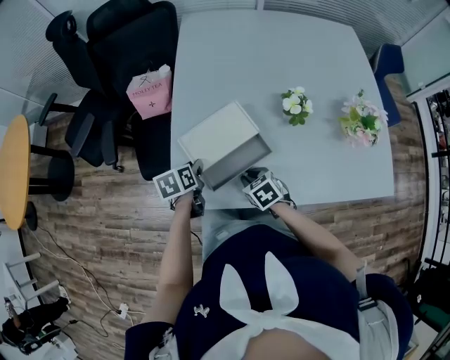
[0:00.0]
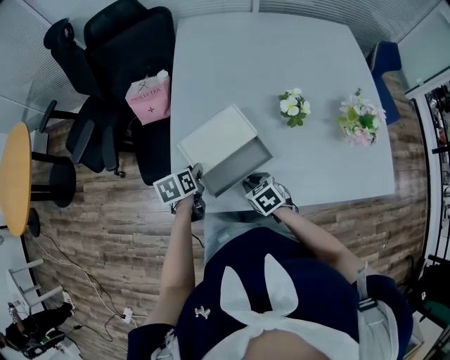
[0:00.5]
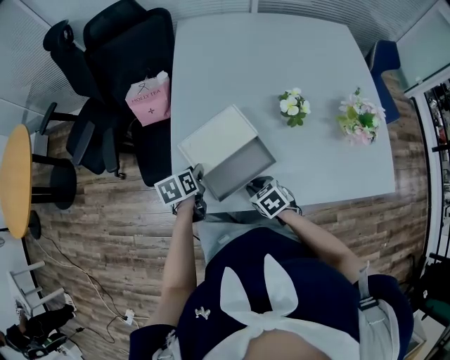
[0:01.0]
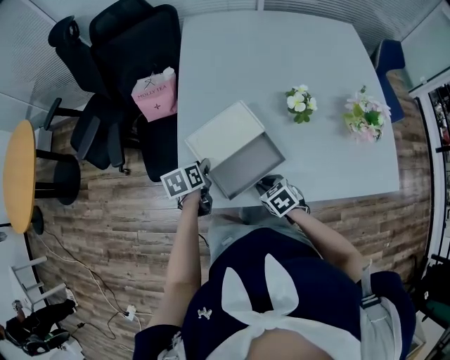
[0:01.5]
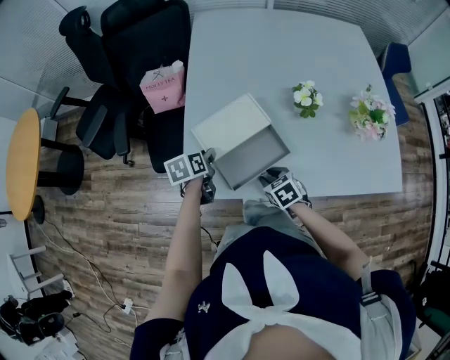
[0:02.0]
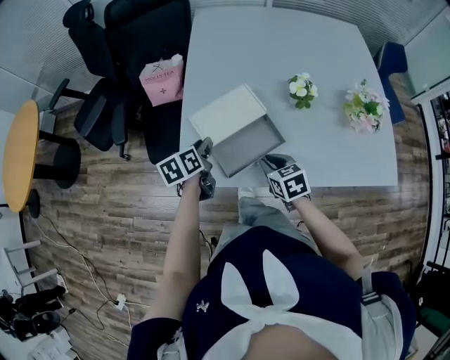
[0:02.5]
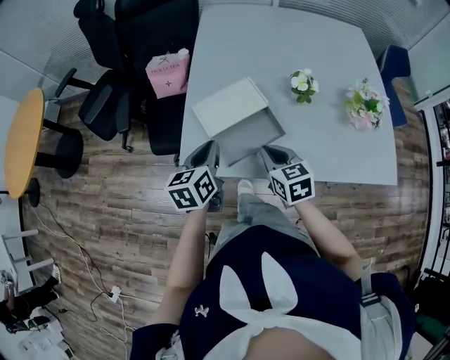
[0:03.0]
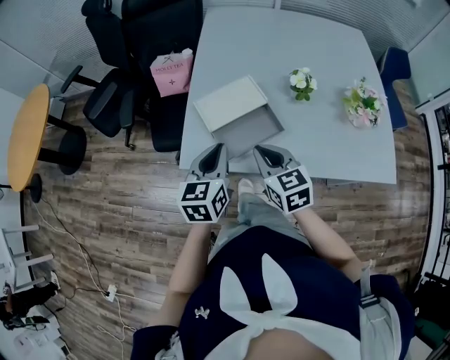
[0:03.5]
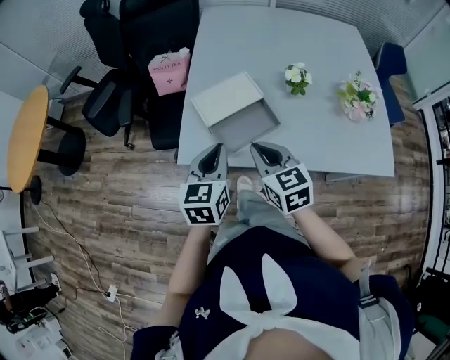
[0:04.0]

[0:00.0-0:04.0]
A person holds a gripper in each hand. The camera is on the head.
0.0 to 2.0 s: The grippers stay close to where they were, moving slightly.
2.0 to 4.0 s: The right gripper is displaced upward by roughly 20 cm, angles its fingers upward, by approximately 30 degrees, and closes; the left gripper goes some 25 cm upward and backward, swivels approximately 40 degrees, and closes up.

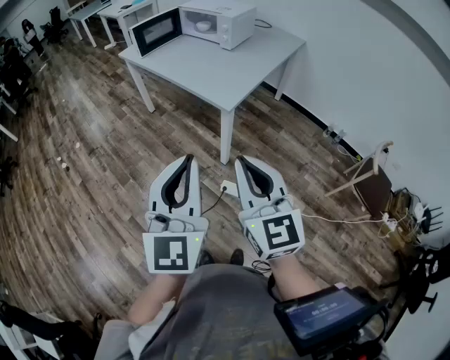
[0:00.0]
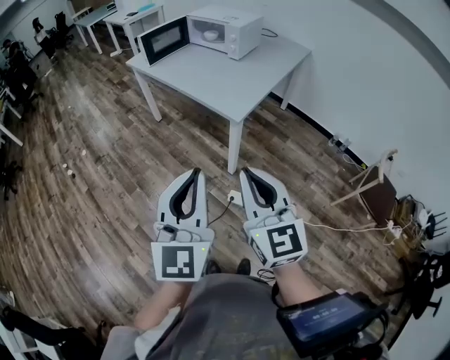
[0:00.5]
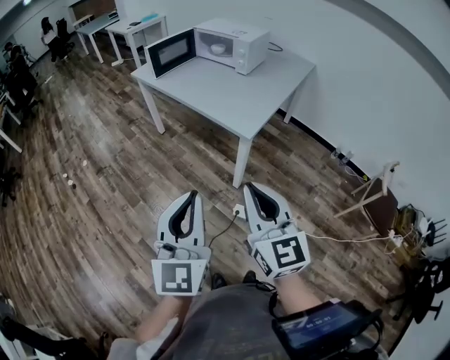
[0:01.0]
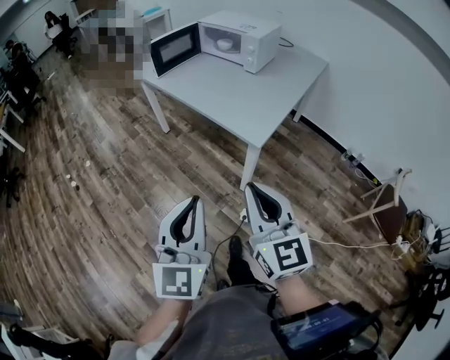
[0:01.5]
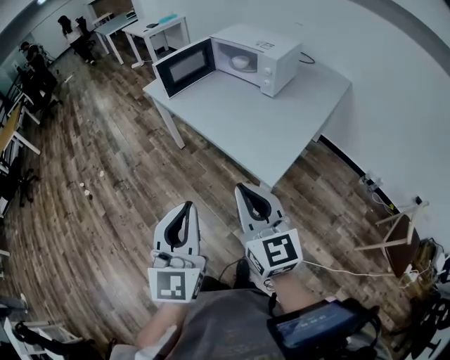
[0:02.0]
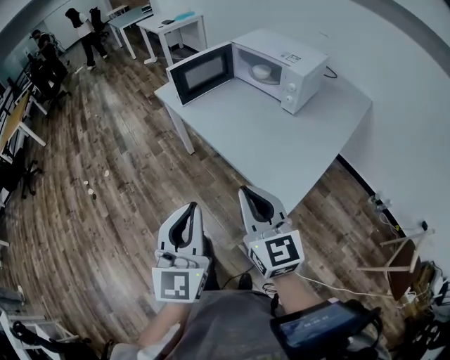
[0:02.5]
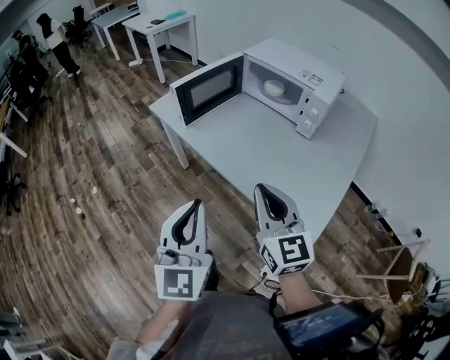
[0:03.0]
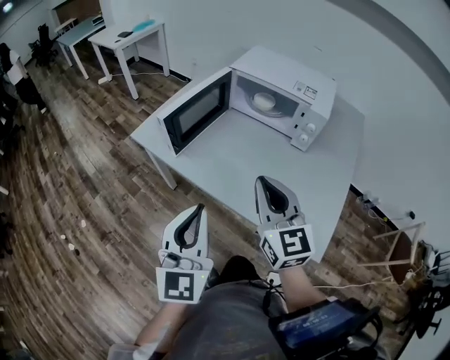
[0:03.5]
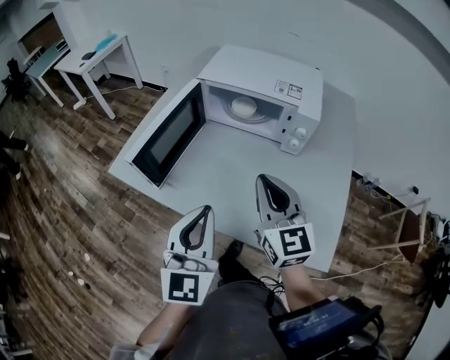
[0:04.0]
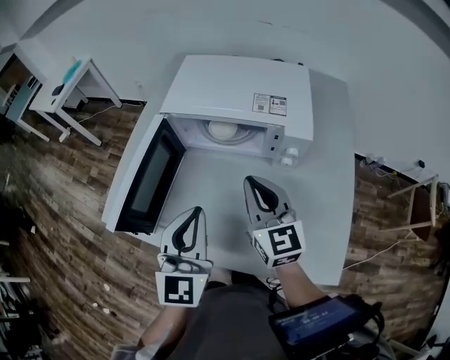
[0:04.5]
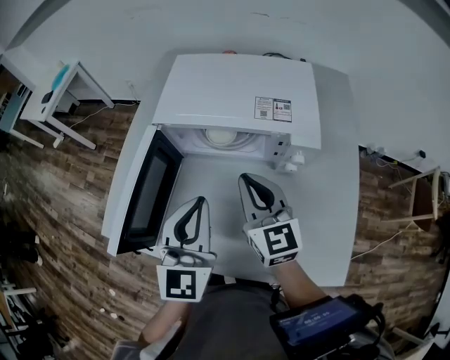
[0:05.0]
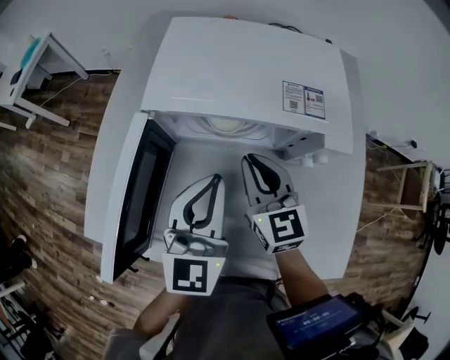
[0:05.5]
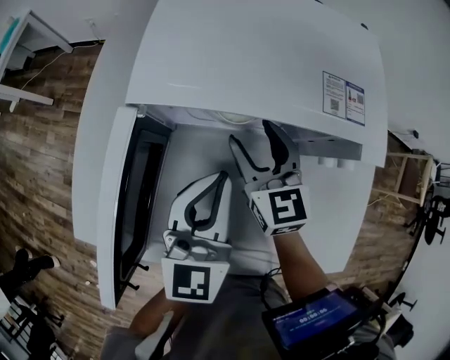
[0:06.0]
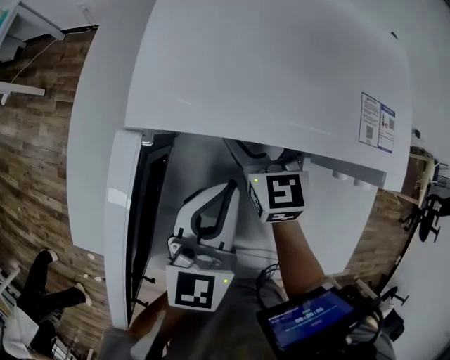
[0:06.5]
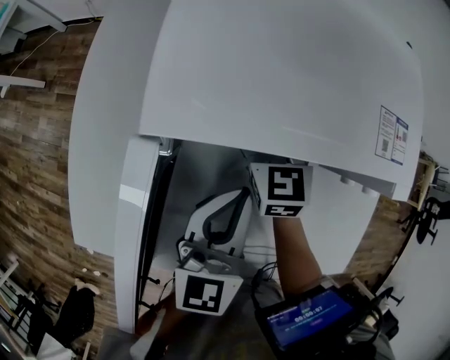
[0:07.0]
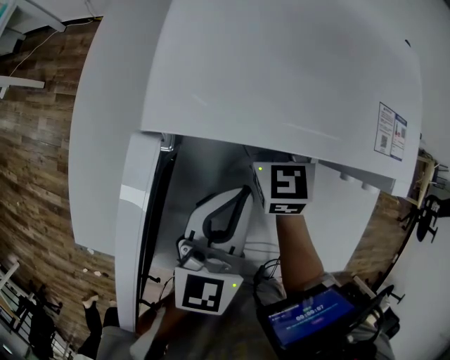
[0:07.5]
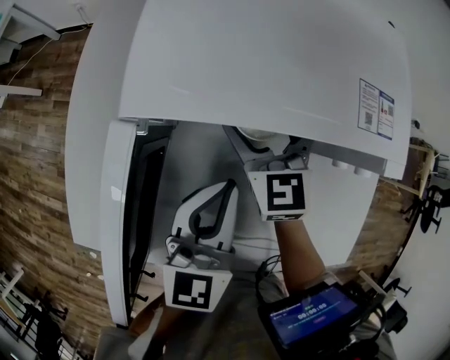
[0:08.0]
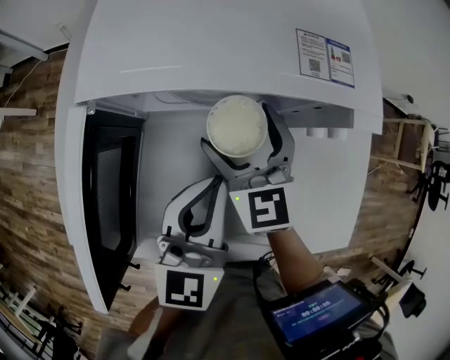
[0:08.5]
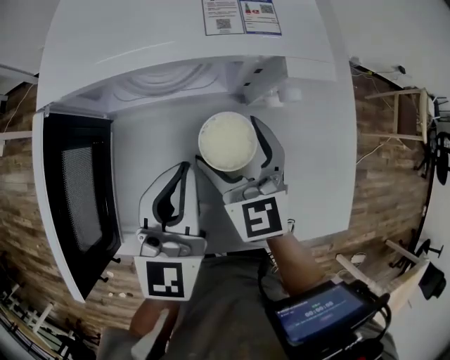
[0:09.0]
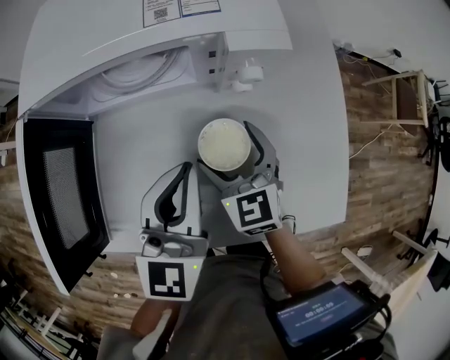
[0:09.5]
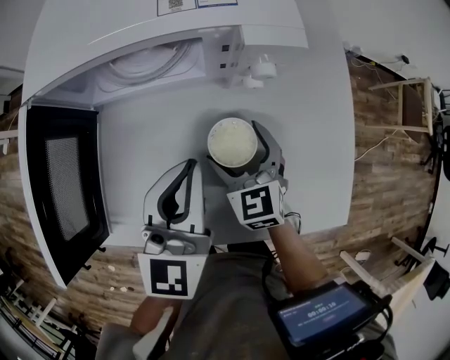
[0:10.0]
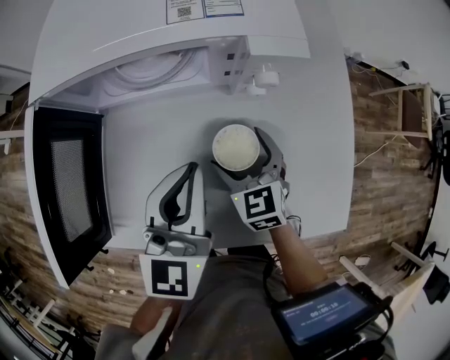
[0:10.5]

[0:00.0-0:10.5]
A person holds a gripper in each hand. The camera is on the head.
0.0 to 2.0 s: The grippers both shift forward by about 25 cm.
2.0 to 4.0 s: The two grippers travel together, some 40 cm. The right gripper changes its angle by some 30 degrees. Meanwhile the left gripper swivels about 30 degrees.
4.0 to 6.5 s: The left gripper travels forward by about 30 cm, and rotates some 30 degrees; the right gripper heads forward and downward, covering about 35 cm, turns by about 30 degrees, and opens up.
6.5 to 8.5 s: The right gripper shifts approximately 5 cm backward. Meanwhile the left gripper moves some 5 cm.
8.5 to 10.5 s: The left gripper moves to the right, about 10 cm; the right gripper travels to the right, downward and backward by roughly 20 cm.

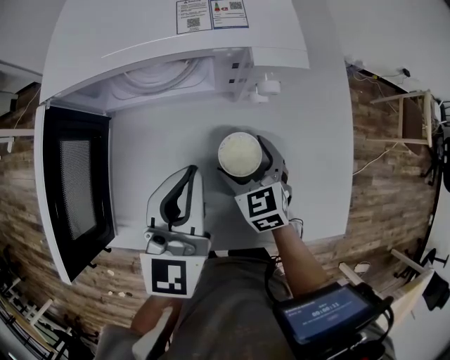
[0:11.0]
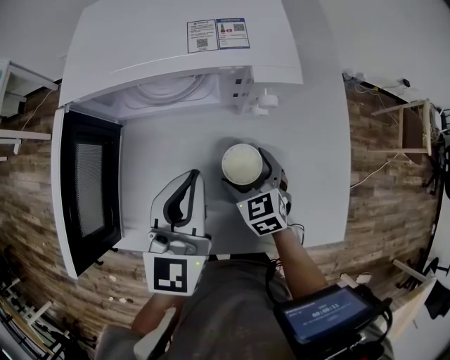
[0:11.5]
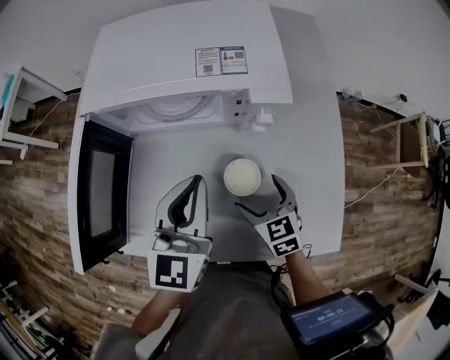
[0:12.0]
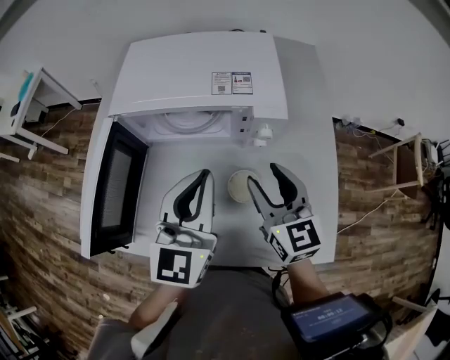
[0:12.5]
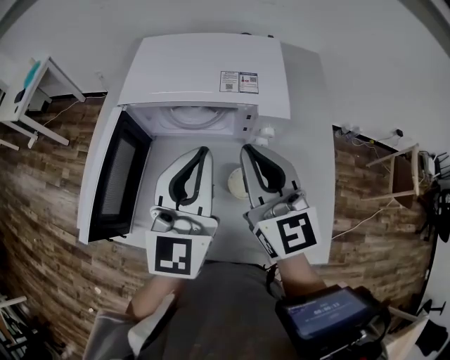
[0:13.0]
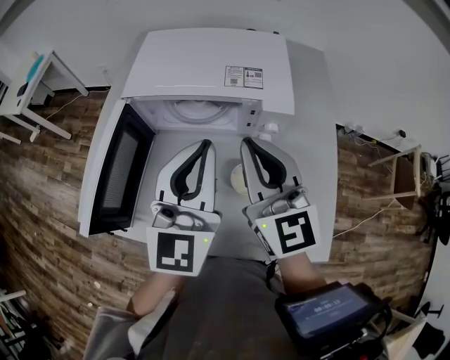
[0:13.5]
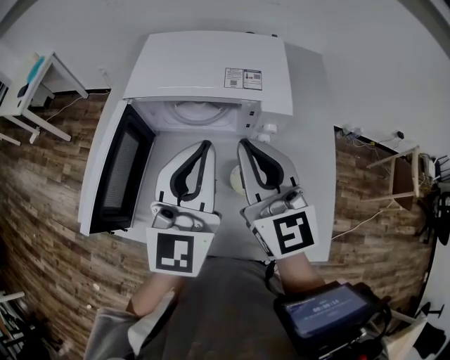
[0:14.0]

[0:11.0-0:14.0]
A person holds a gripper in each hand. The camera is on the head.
11.0 to 12.5 s: The right gripper heads upward, covering about 20 cm, swivels about 30 degrees, and closes its fingers; the left gripper is displaced upward by some 10 cm.
12.5 to 14.0 s: The right gripper is displaced upward and to the left by approximately 15 cm, and closes; the left gripper moves upward, some 5 cm.

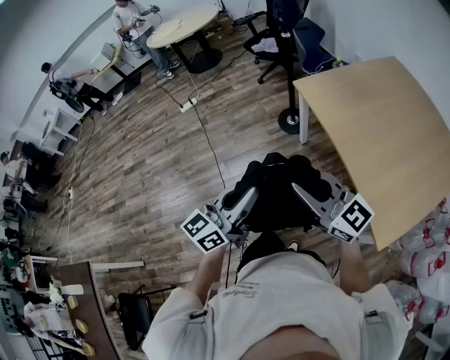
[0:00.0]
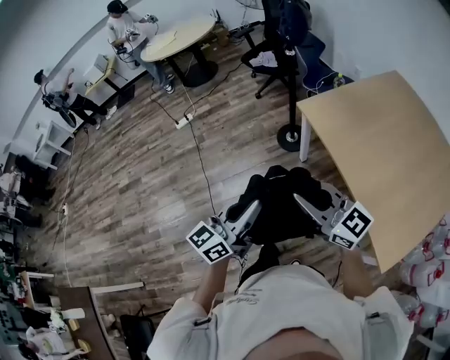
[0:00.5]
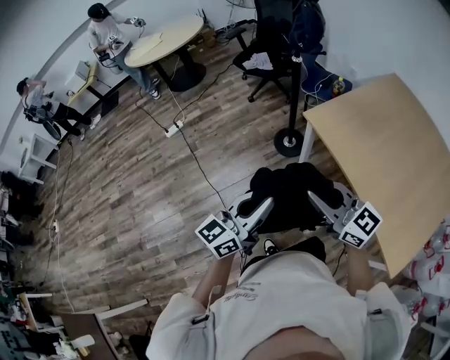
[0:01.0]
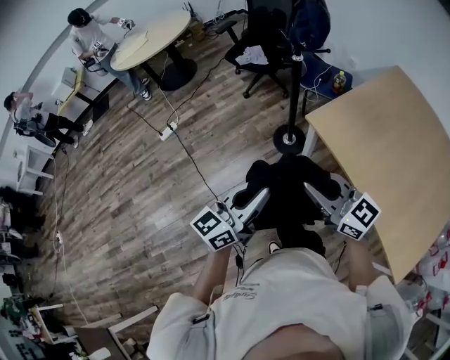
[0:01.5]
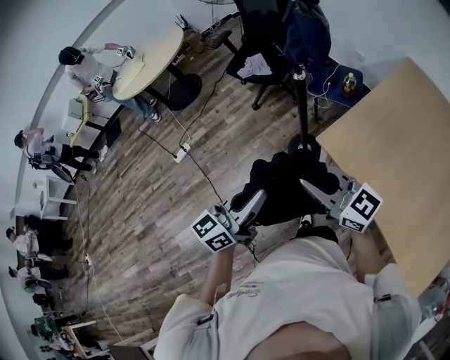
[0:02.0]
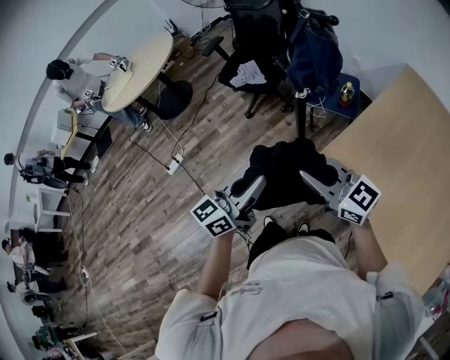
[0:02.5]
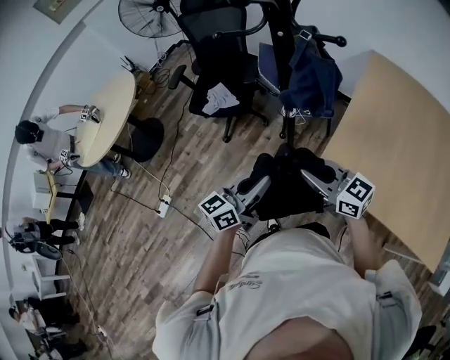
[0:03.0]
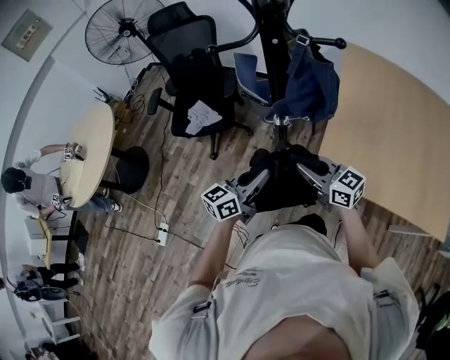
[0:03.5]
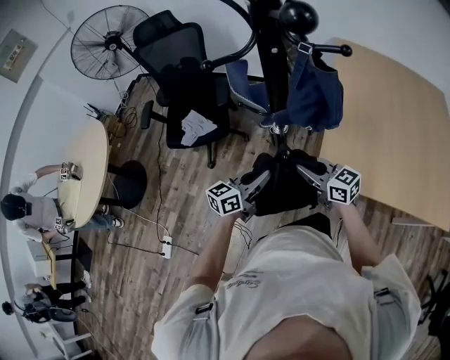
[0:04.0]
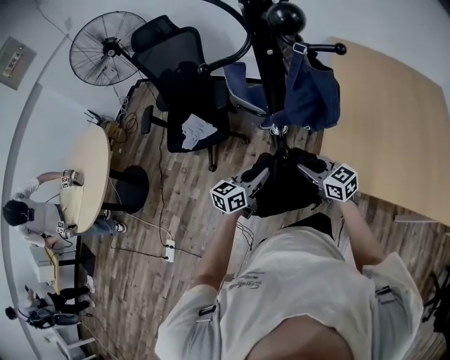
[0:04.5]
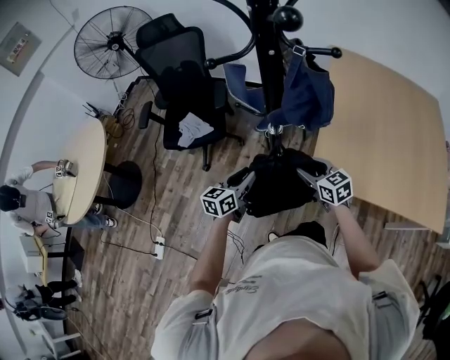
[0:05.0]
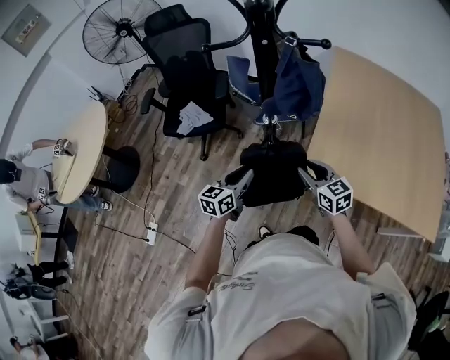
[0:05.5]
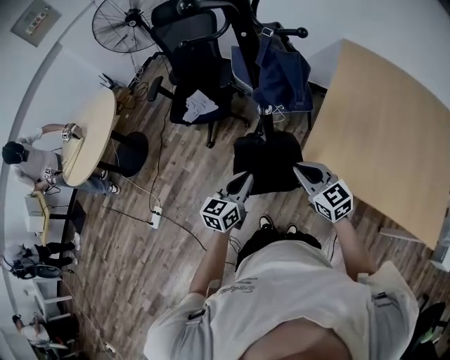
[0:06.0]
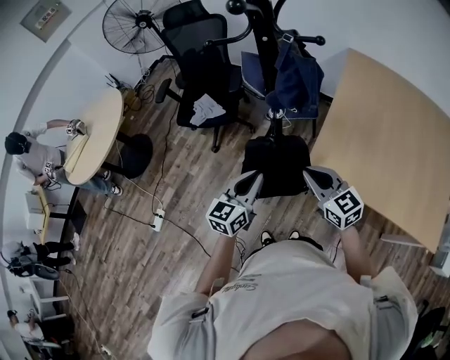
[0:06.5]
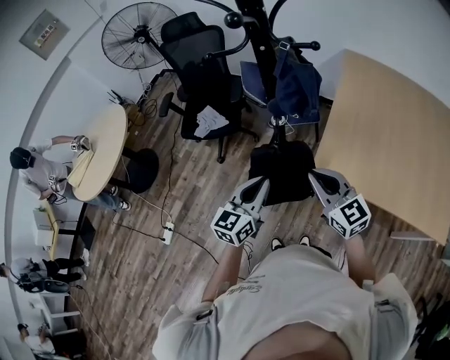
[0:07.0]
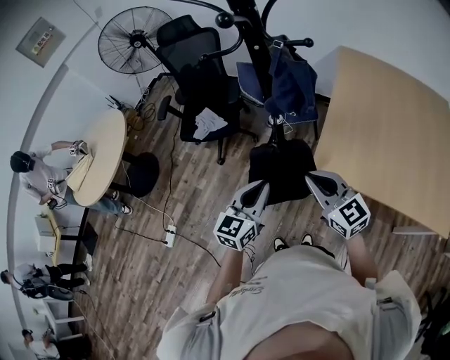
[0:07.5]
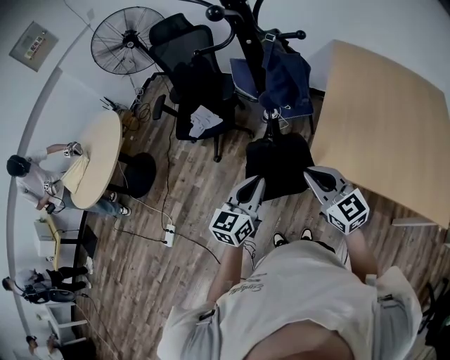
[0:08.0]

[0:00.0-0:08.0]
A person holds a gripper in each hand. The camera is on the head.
0.0 to 2.0 s: The pair of grippers is taken forward, about 50 cm.
2.0 to 4.0 s: The right gripper shifts by some 30 cm, and changes its angle by approximately 40 degrees, while the left gripper ends up about 40 cm from where it was, and rotates some 40 degrees.
4.0 to 6.0 s: The left gripper goes some 10 cm backward, and swivels about 30 degrees; the right gripper moves backward and to the right, approximately 10 cm, and opens and closes again.
6.0 to 8.0 s: The grippers both shift upward by about 10 cm.

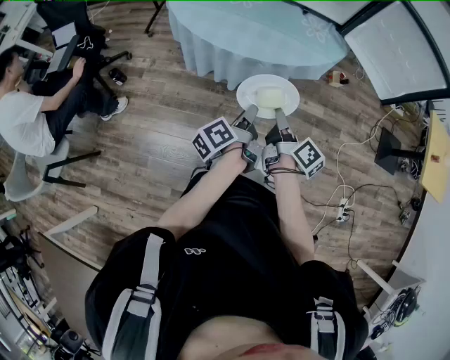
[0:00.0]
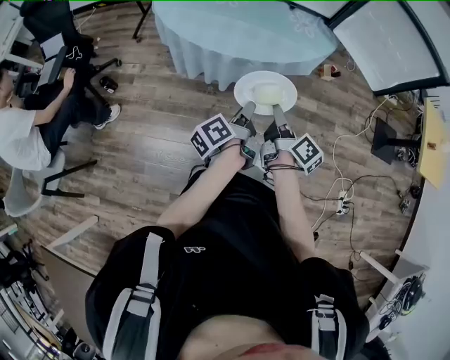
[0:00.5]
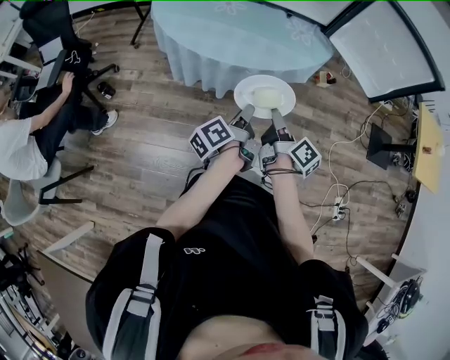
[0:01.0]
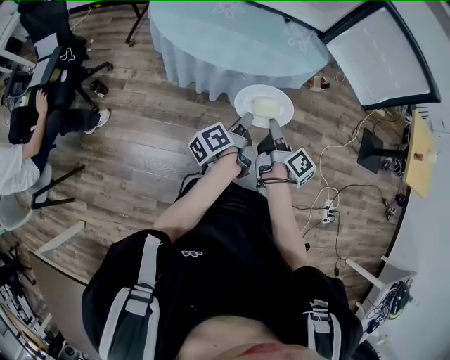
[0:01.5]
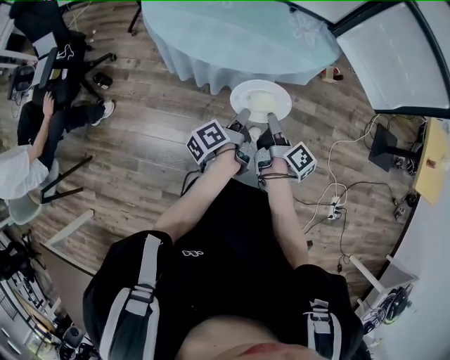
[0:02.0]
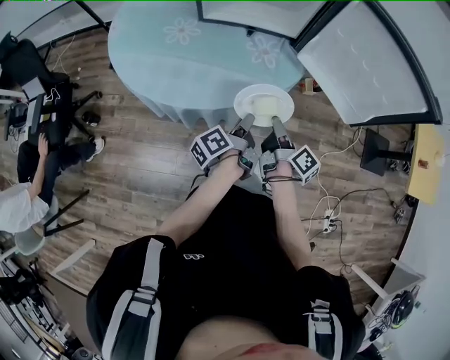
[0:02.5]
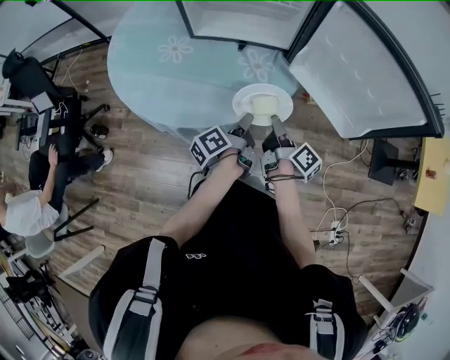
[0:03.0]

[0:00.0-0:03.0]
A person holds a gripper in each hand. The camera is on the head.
1.5 to 3.0 s: The right gripper shifts by approximately 30 cm.
